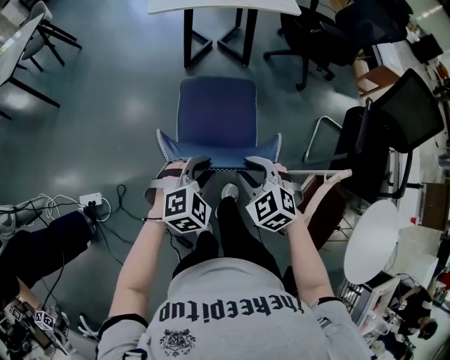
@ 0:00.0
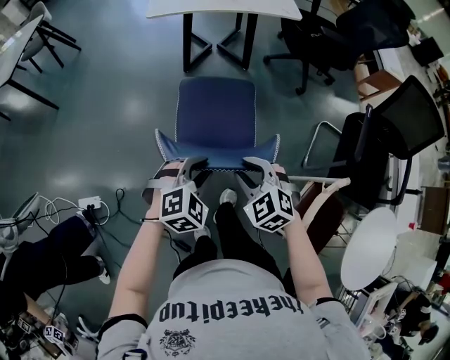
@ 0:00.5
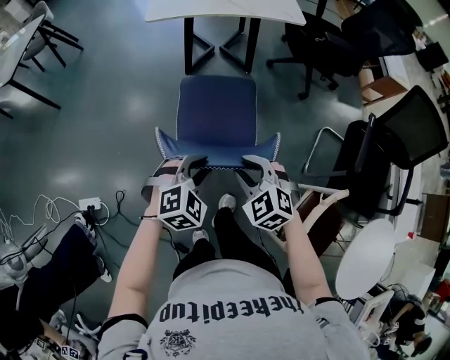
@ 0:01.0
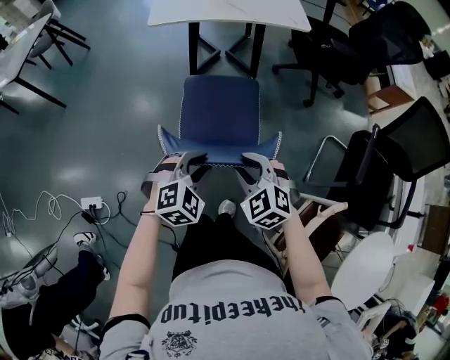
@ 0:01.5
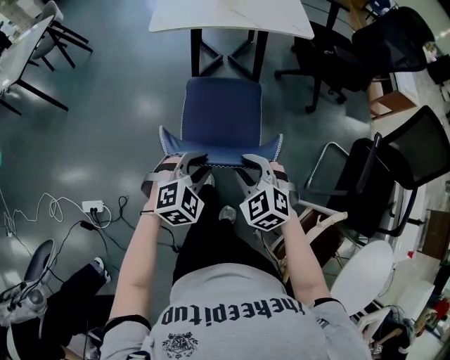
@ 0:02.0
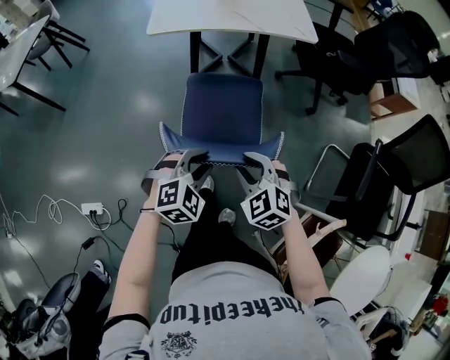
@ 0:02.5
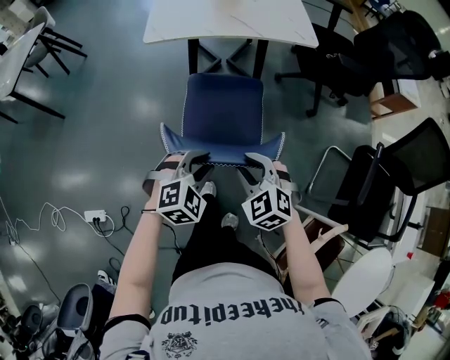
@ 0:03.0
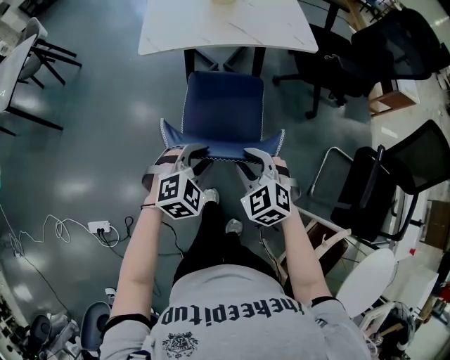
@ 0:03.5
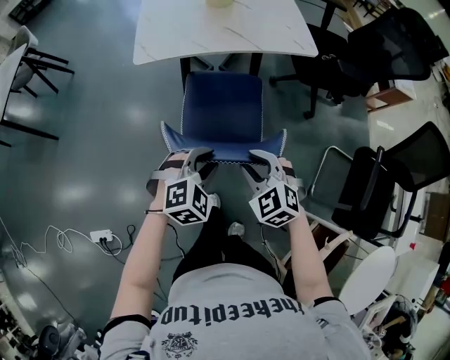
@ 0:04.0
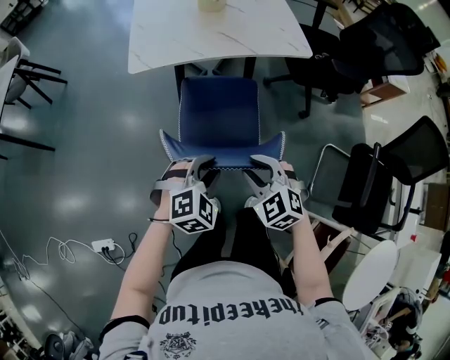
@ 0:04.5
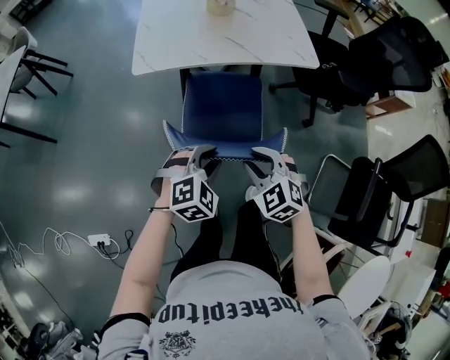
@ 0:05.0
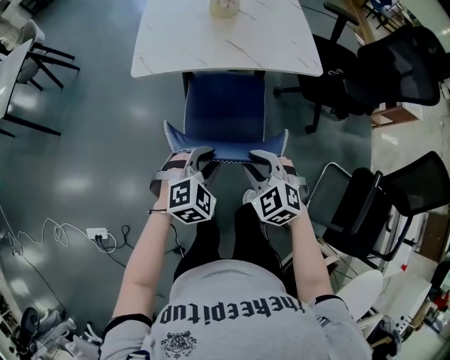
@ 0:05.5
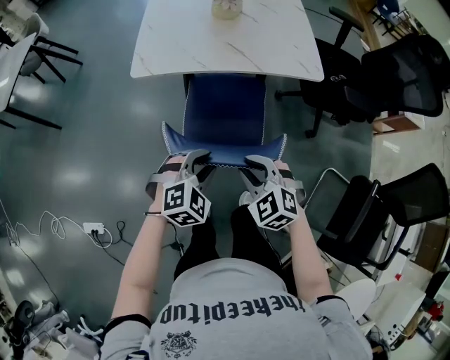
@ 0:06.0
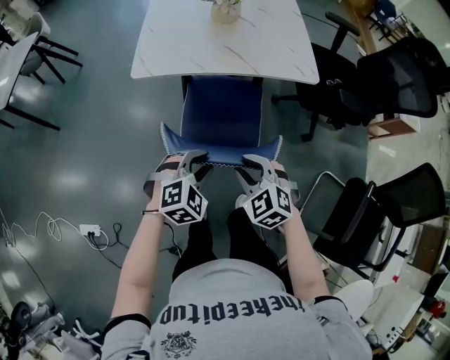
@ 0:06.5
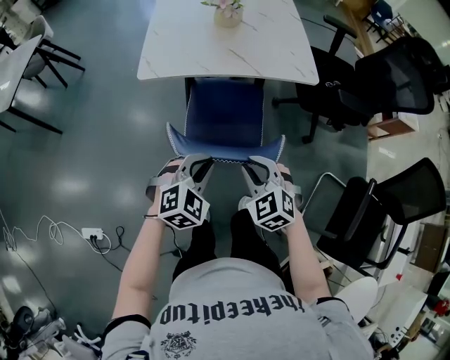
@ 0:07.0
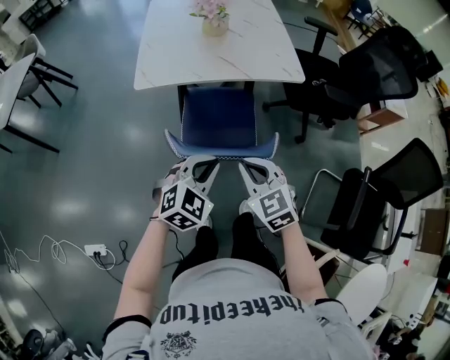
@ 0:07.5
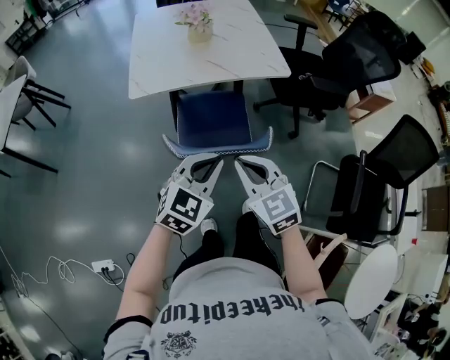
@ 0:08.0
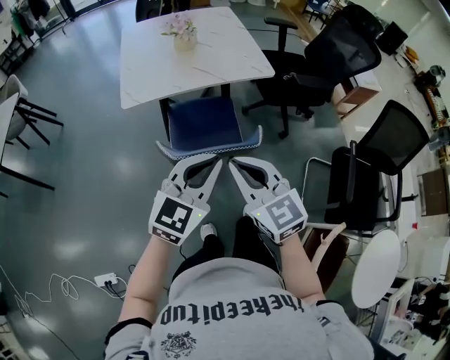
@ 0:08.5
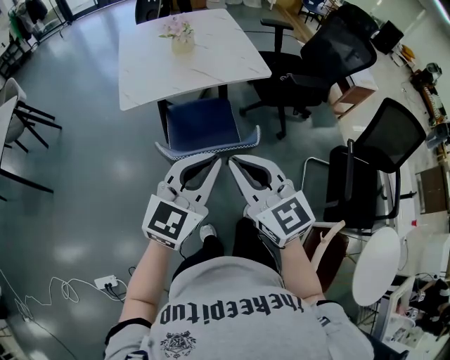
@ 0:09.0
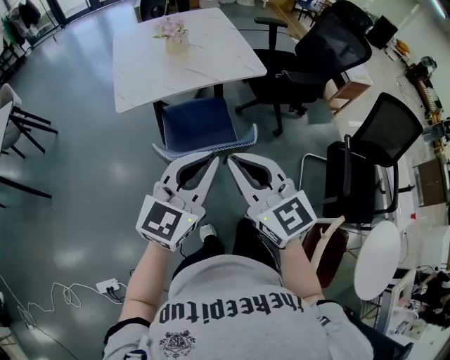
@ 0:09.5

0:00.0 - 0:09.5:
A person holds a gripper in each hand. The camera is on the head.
0:00.0 - 0:02.0: Both grippers travel together forward, roughly 15 cm.
0:02.0 - 0:04.0: Both grippers travel together forward, roughly 15 cm.
0:04.0 - 0:05.5: The grippers both shift forward by some 5 cm.
0:05.5 - 0:07.5: Both grippers travel together upward, roughly 5 cm. The left gripper closes its fingers. Meanwhile the right gripper changes its angle by about 20 degrees, and closes.
0:07.5 - 0:09.5: The right gripper is displaced upward and backward by some 20 cm, and changes its angle by about 30 degrees. Meanwhile the left gripper goes approximately 15 cm upward, and angles its fingers upward, by some 30 degrees.

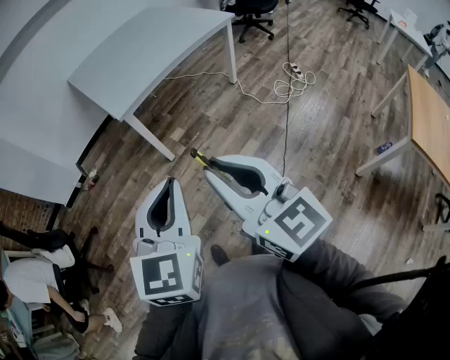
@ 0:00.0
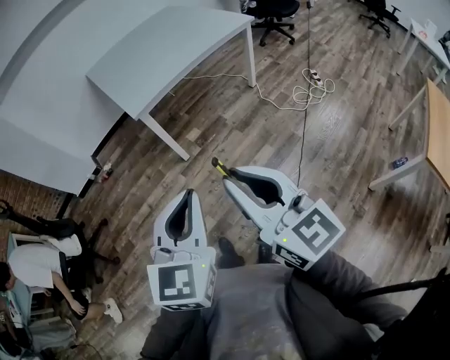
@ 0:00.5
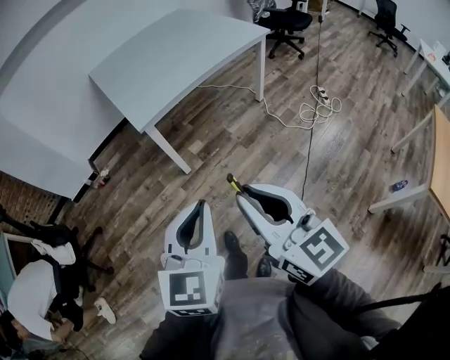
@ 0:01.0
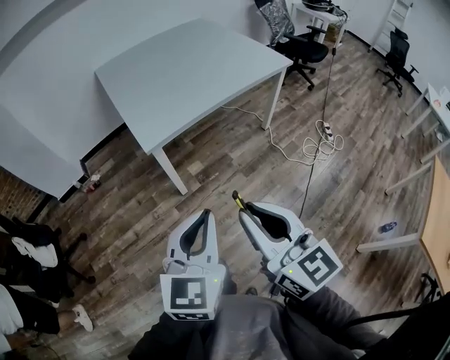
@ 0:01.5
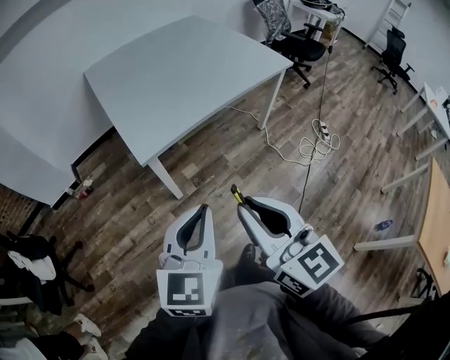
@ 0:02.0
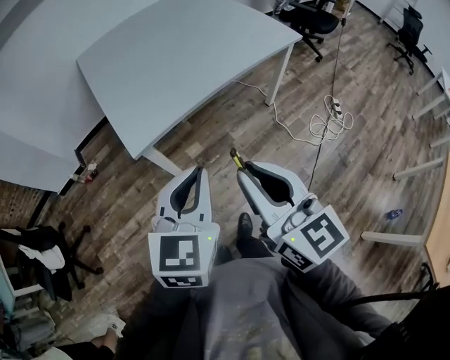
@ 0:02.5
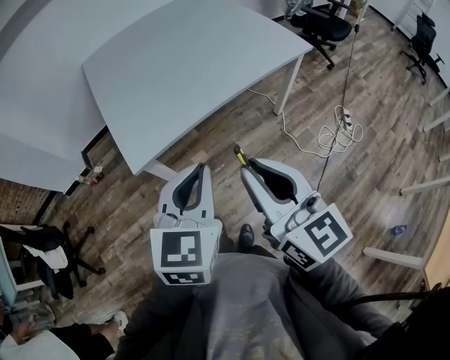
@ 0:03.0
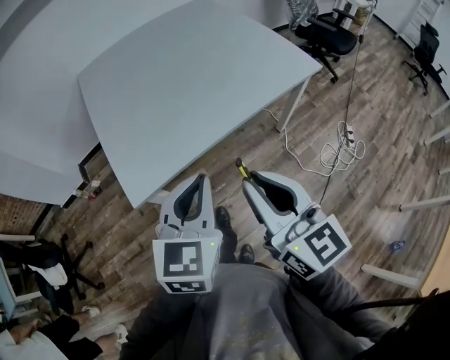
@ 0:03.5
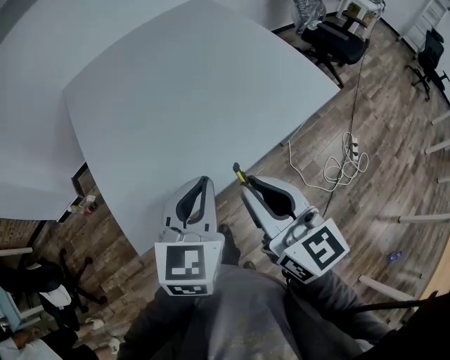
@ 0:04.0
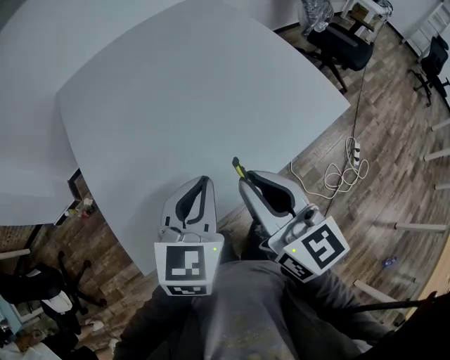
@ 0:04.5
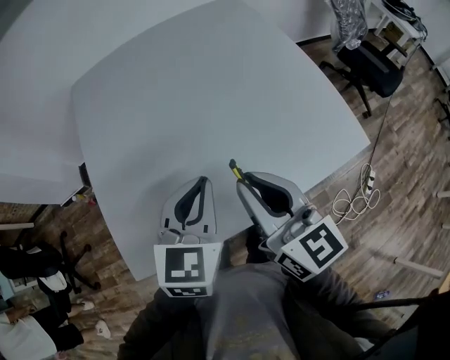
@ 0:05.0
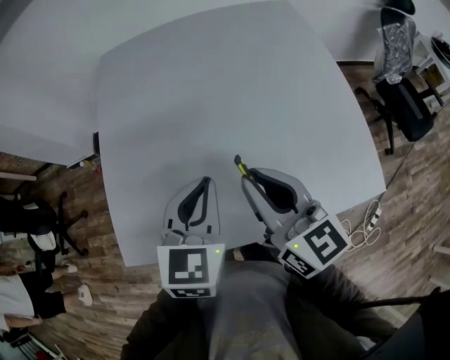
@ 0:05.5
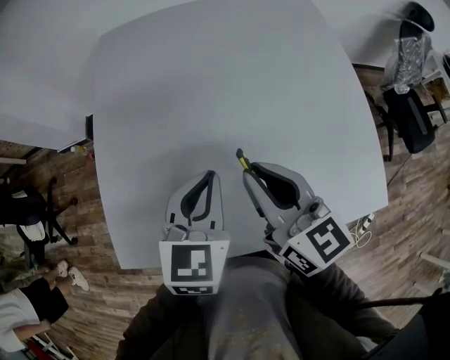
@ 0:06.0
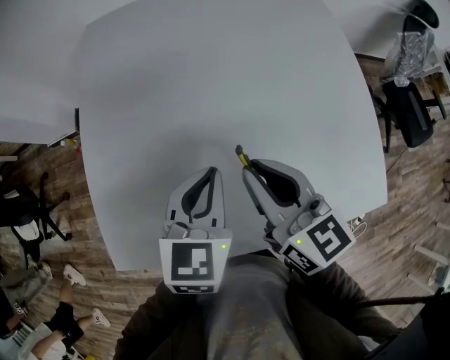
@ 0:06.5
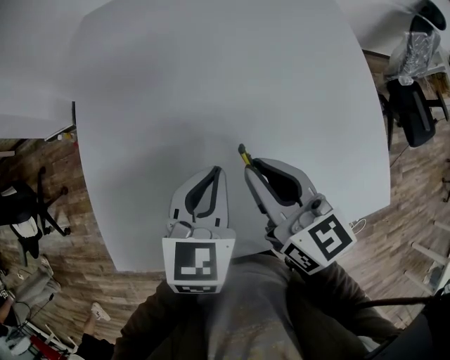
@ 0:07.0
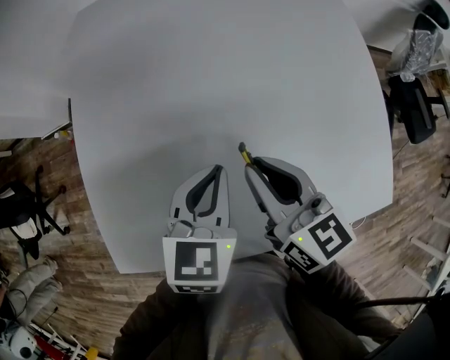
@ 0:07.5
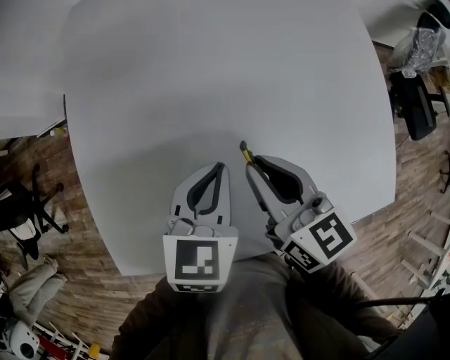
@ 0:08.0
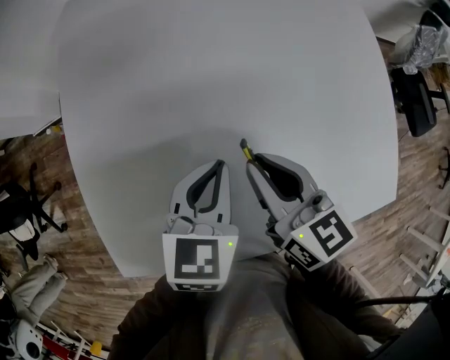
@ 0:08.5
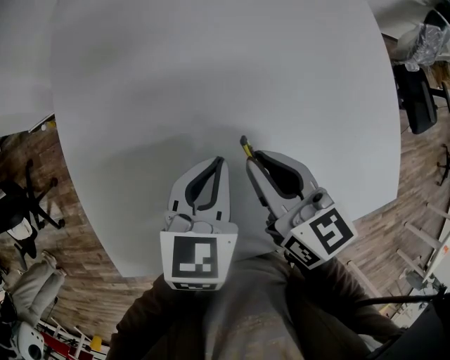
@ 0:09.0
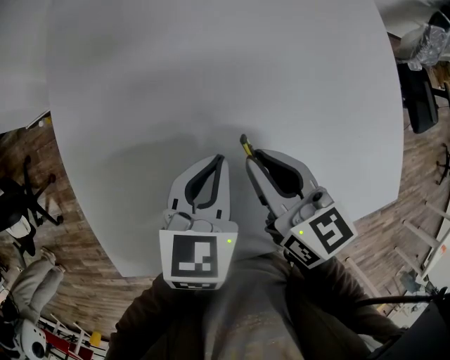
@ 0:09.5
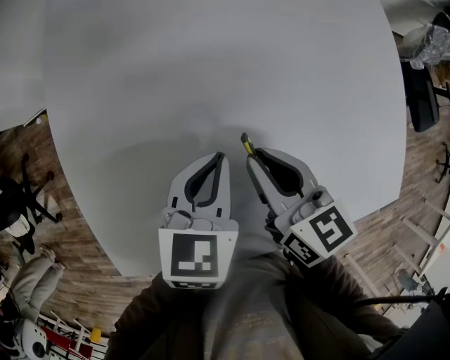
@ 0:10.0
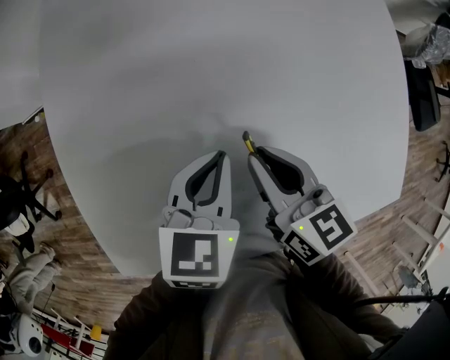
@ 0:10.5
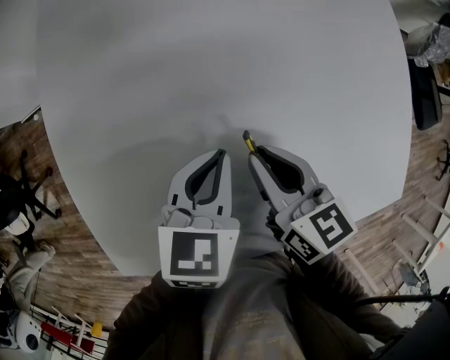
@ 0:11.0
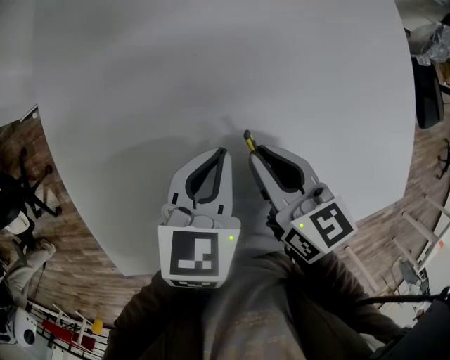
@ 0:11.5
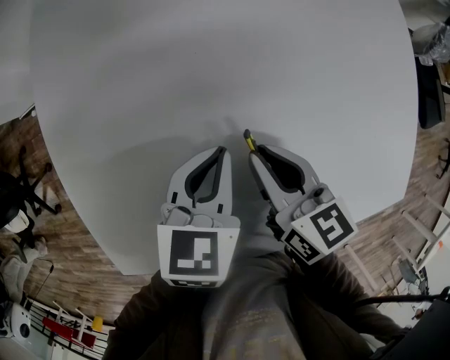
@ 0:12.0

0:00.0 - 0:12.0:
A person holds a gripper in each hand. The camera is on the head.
0:00.0 - 0:02.0: Both grippers move forward, about 30 cm.
0:02.0 - 0:04.0: The pair of grippers is taken forward, roughly 50 cm.
0:04.0 - 0:06.0: The right gripper shifts by about 30 cm, and rotates some 30 degrees. The left gripper changes place by roughly 25 cm, and swivels about 30 degrees.
0:06.0 - 0:08.0: Both grippers move downward and forward, about 10 cm.
0:08.0 - 0:10.0: Both grippers move downward, some 5 cm.
0:10.0 - 0:12.0: The grippers move only a little.

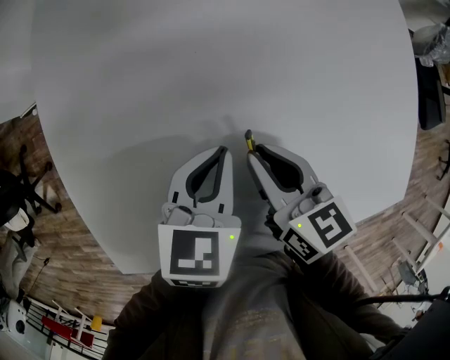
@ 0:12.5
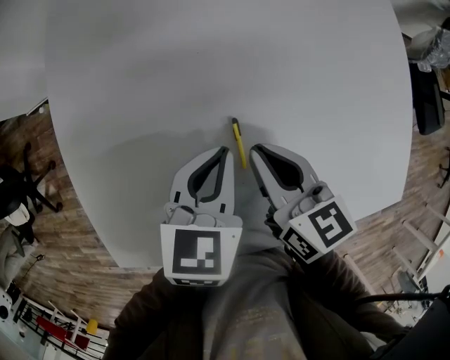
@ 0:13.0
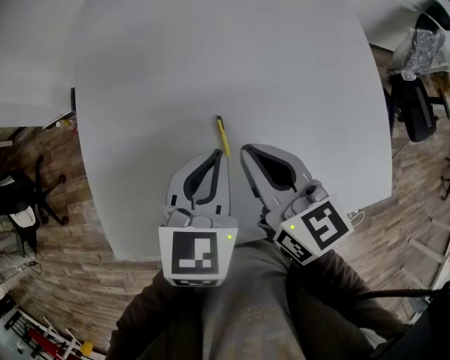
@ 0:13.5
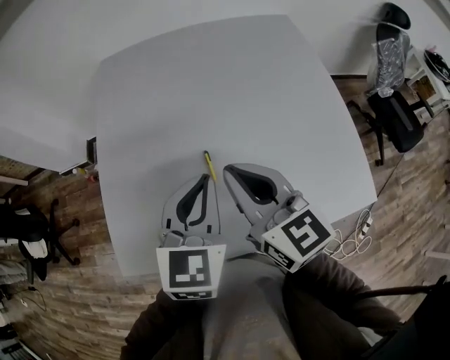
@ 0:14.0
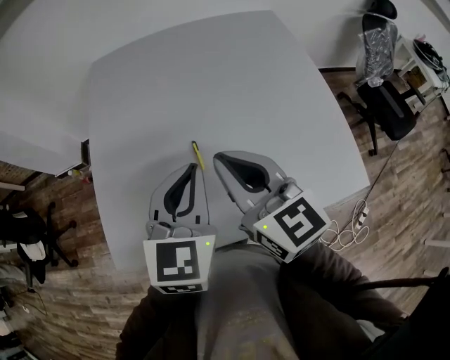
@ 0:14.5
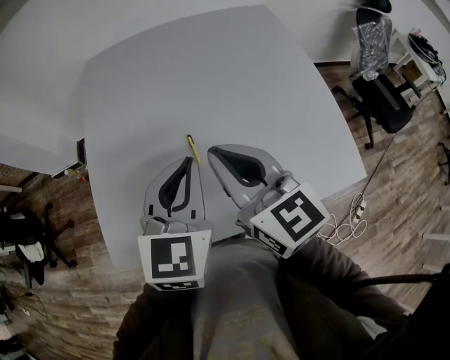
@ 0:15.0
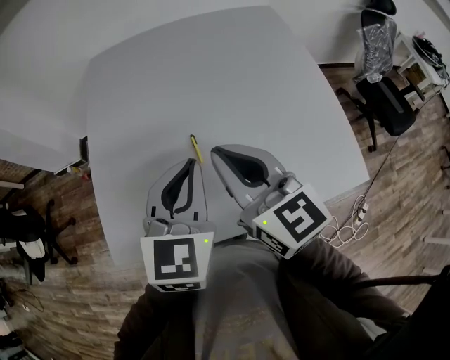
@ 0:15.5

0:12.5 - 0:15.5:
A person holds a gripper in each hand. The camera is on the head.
0:12.5 - 0:14.0: The left gripper shifts about 25 cm upward and backward, and turns by approximately 30 degrees. Meanwhile the right gripper moves upward, approximately 25 cm, and swivels some 30 degrees.
0:14.0 - 0:15.5: There are only small adjustments of the grippers.

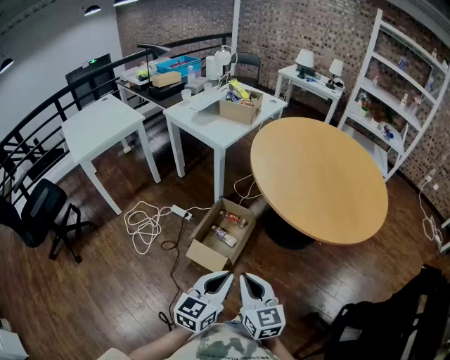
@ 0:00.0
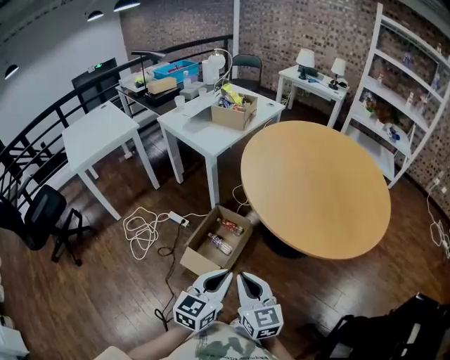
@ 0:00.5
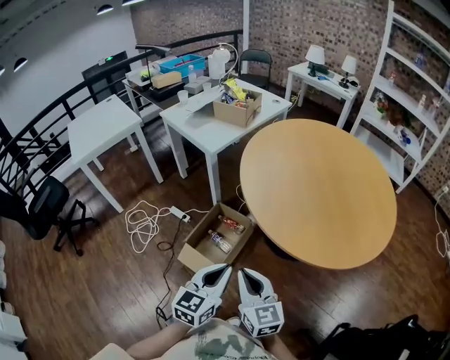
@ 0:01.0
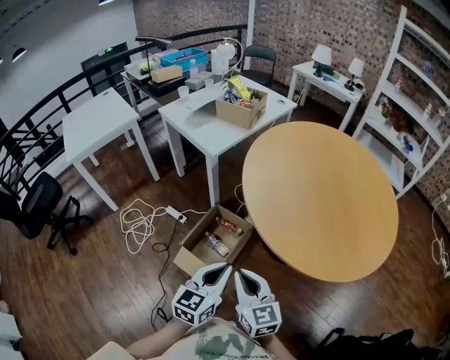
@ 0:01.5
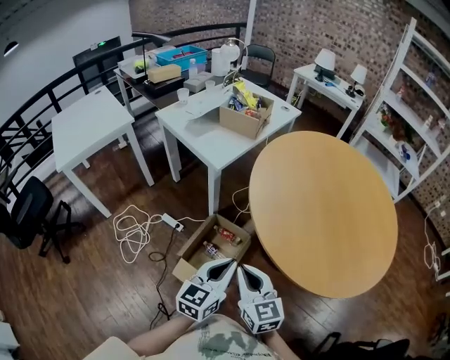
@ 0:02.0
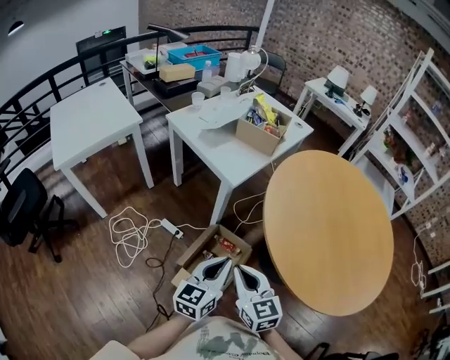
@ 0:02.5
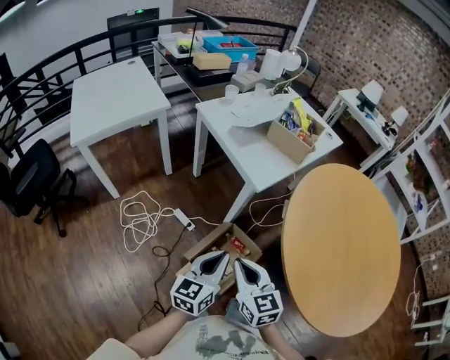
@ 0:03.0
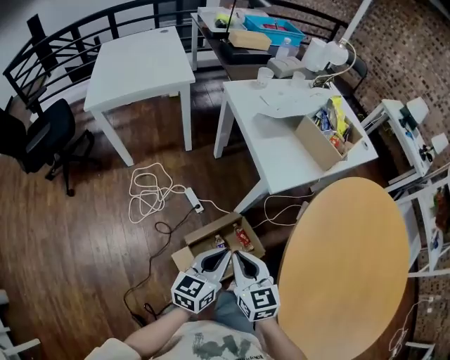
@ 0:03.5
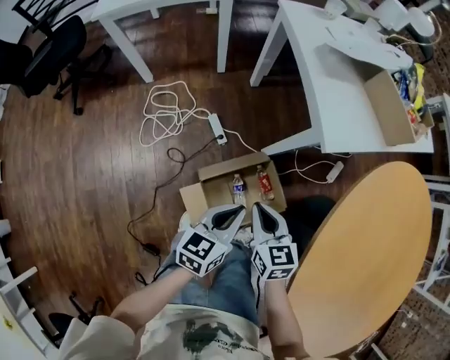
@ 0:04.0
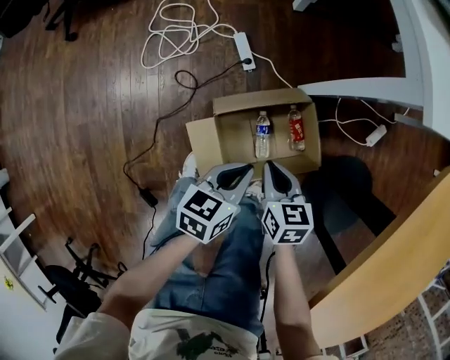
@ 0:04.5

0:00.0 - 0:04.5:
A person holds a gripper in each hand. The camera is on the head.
0:00.0 - 0:02.0: The grippers both shift forward by some 25 cm.
0:02.0 - 0:04.5: Both grippers move downward, about 40 cm. The left gripper swivels about 50 degrees. The right gripper changes its angle by some 50 degrees.
